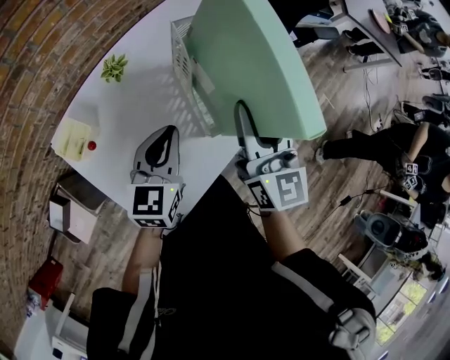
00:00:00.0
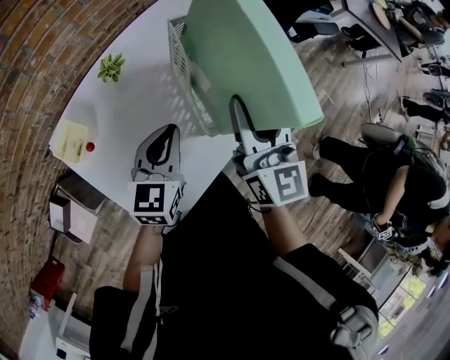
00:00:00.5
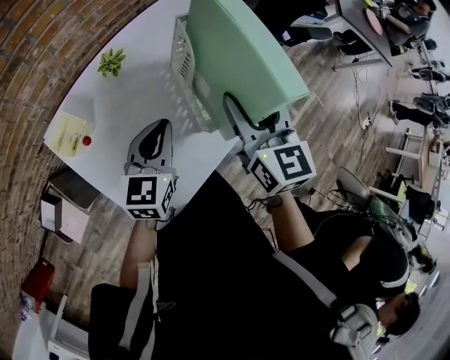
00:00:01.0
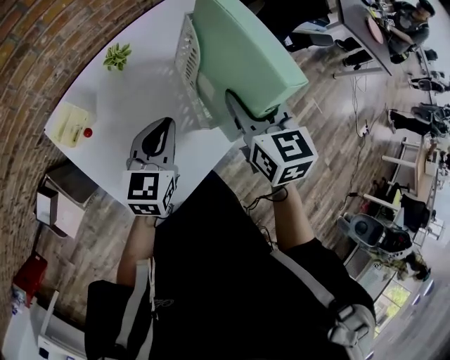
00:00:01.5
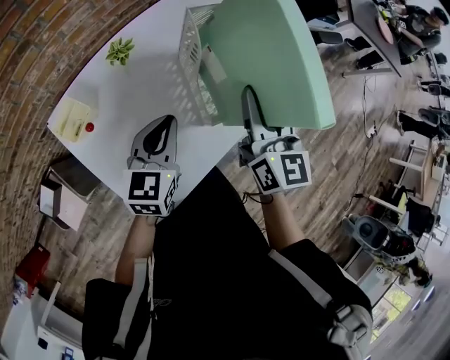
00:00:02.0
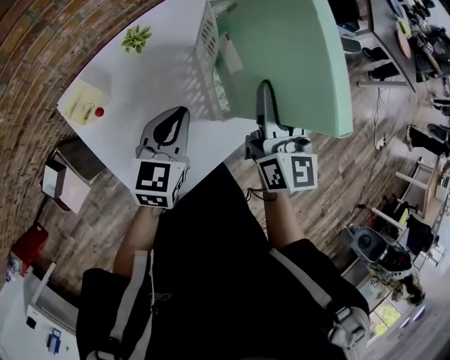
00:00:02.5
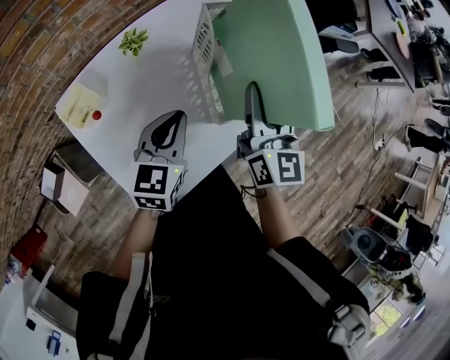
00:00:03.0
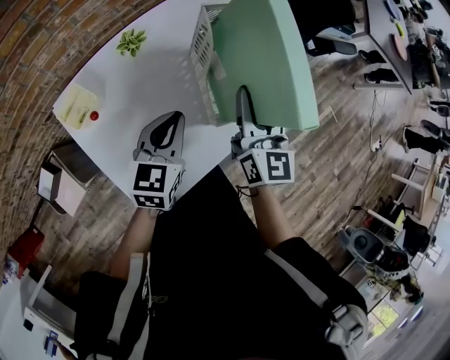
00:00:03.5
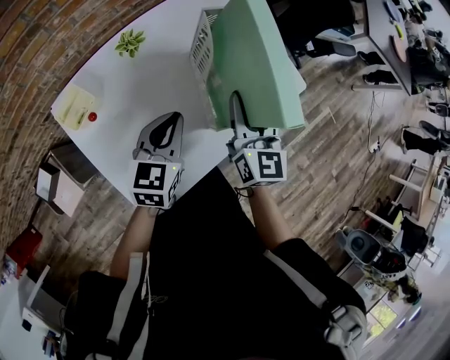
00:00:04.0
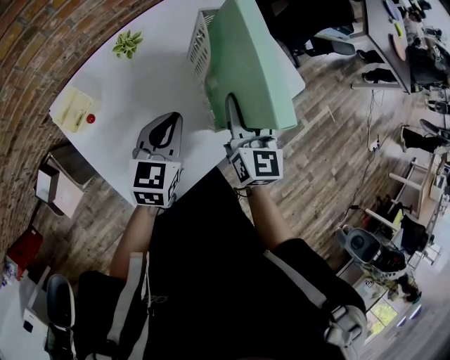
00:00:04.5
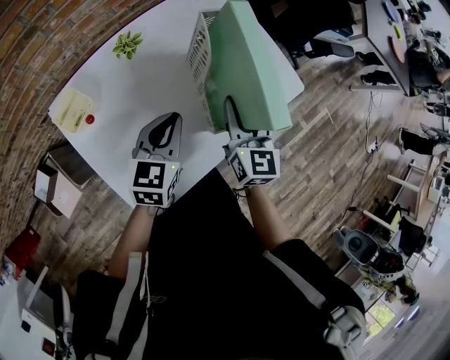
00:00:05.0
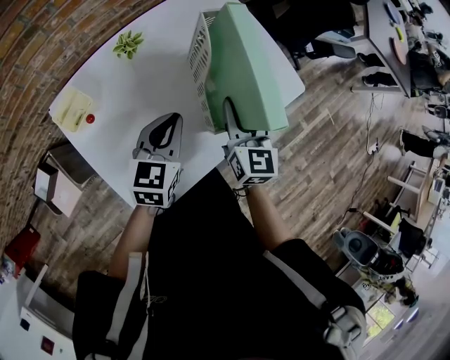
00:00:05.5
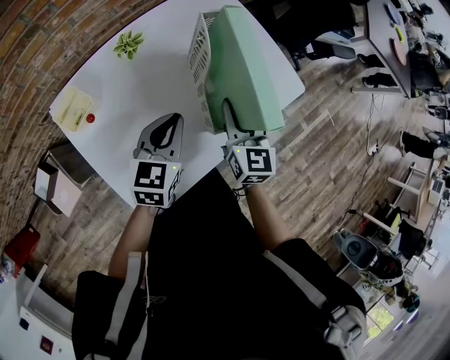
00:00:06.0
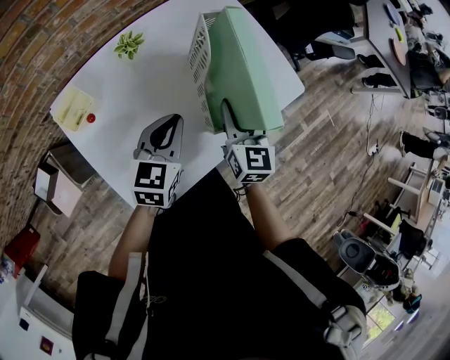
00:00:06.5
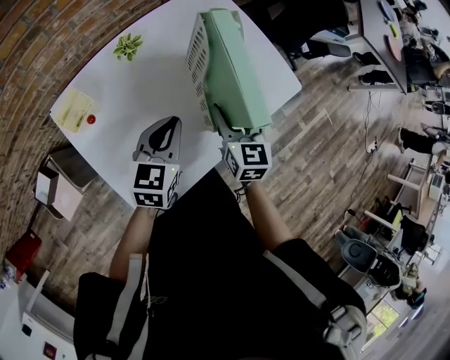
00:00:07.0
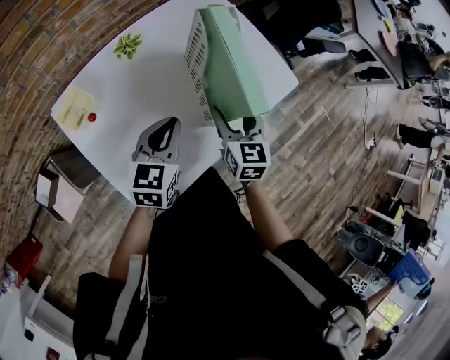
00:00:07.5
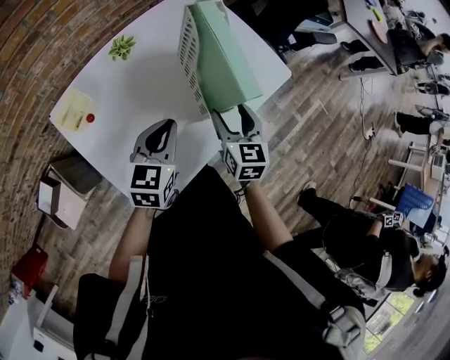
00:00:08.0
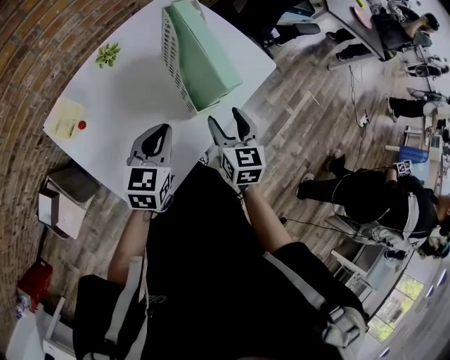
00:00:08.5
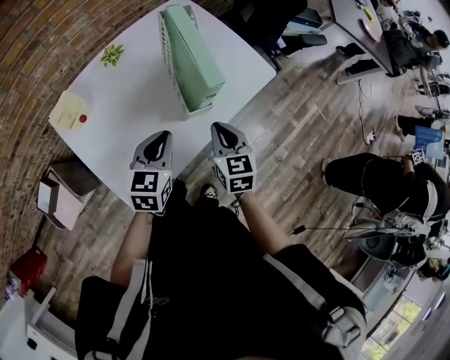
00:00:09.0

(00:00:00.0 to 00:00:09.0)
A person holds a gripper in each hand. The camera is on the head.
00:00:02.0 - 00:00:04.5: The right gripper travels downward by roughly 10 cm.
00:00:04.5 - 00:00:07.0: The right gripper is displaced downward by some 5 cm, and opens its fingers.
00:00:07.0 - 00:00:09.0: Both grippers move backward and to the right, roughly 10 cm. The right gripper closes up.

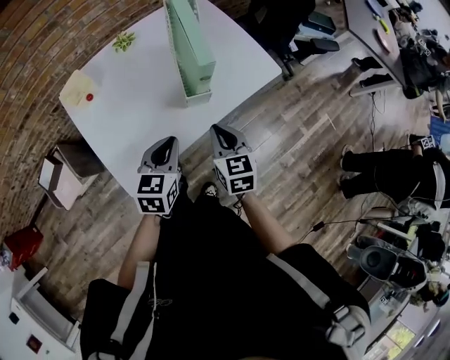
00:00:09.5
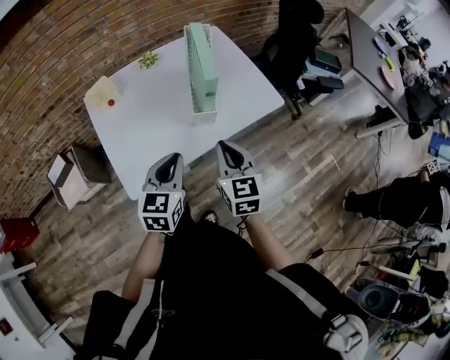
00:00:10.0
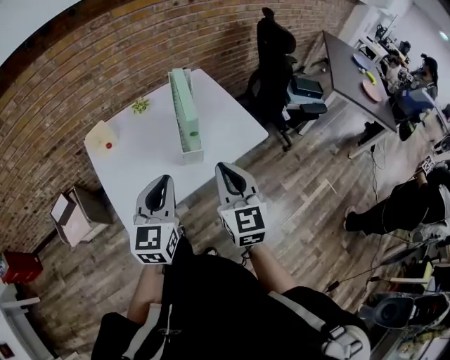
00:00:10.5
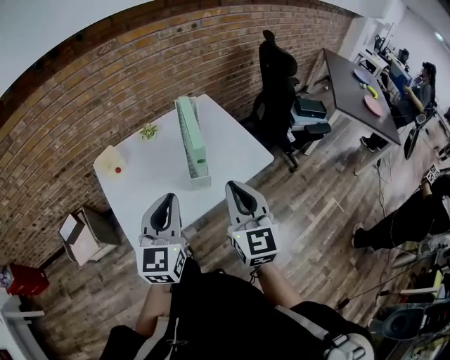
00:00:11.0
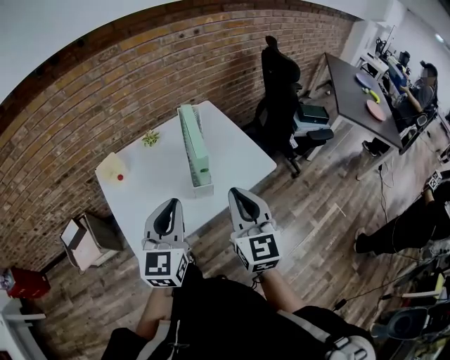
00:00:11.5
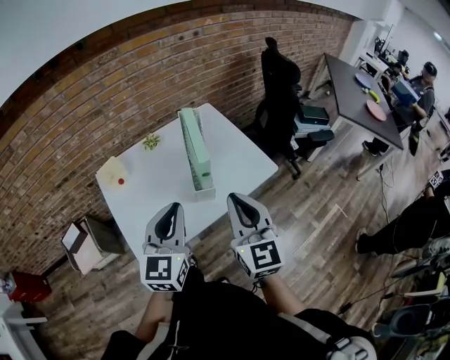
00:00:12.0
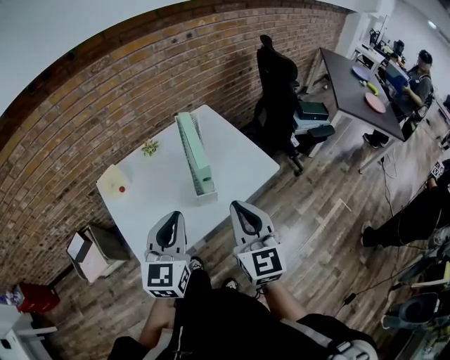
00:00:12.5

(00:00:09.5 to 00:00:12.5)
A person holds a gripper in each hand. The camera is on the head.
00:00:09.5 - 00:00:11.0: Both grippers travel together upward, some 20 cm. The right gripper turns by some 30 degrees; the left gripper rotates roughly 30 degrees.
00:00:11.0 - 00:00:12.5: The grippers make only small movements.

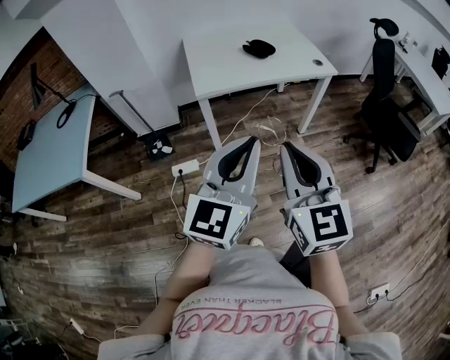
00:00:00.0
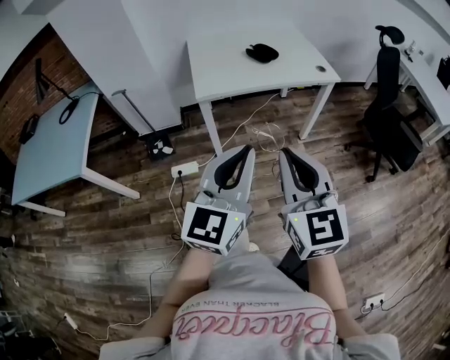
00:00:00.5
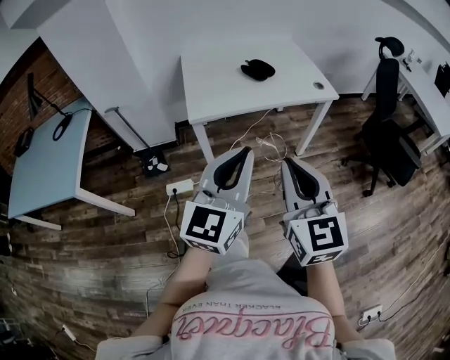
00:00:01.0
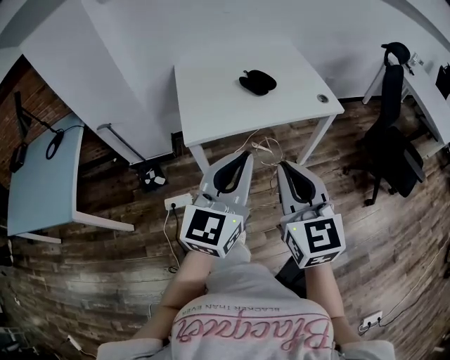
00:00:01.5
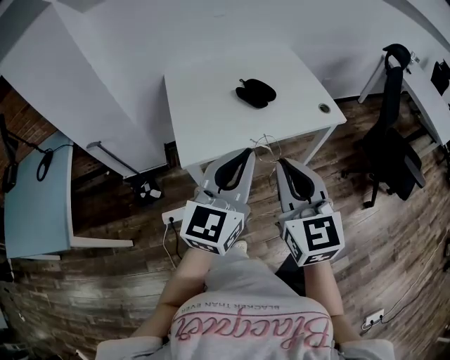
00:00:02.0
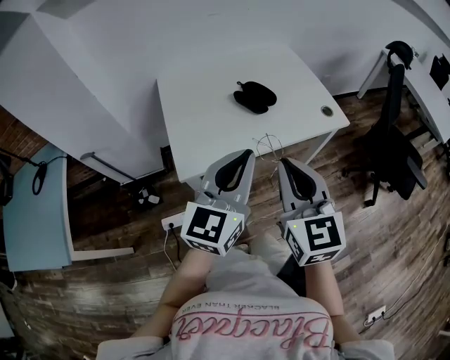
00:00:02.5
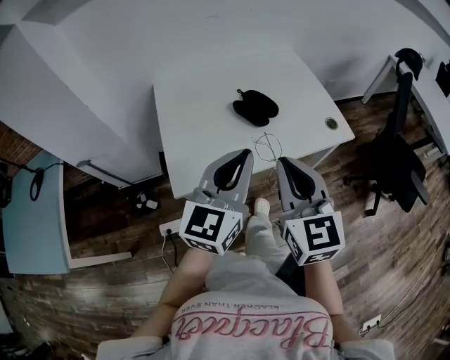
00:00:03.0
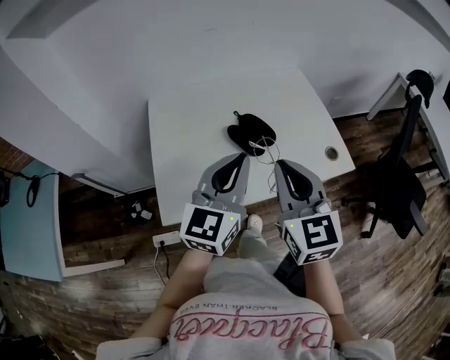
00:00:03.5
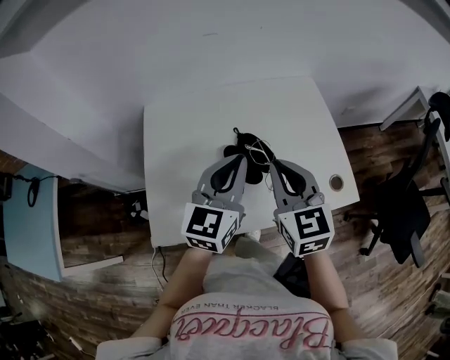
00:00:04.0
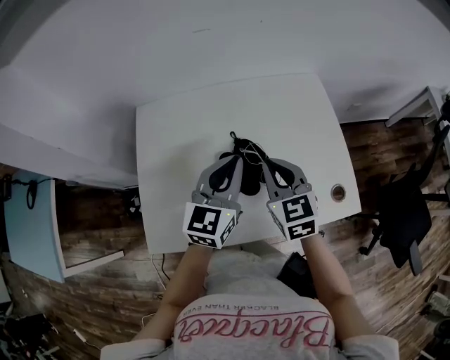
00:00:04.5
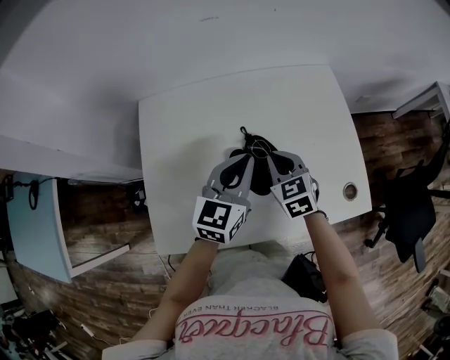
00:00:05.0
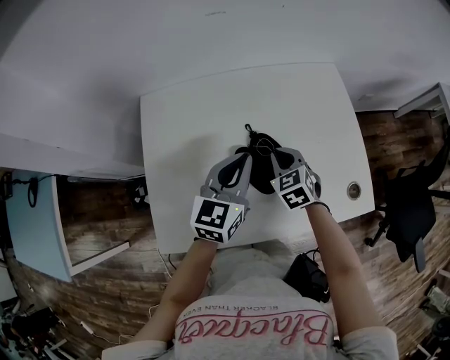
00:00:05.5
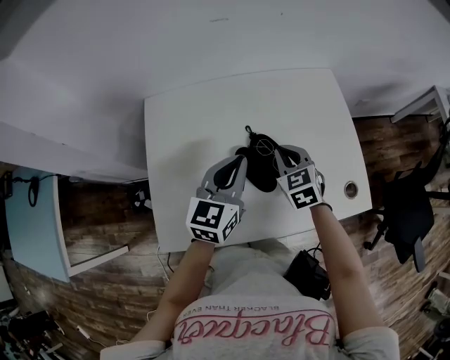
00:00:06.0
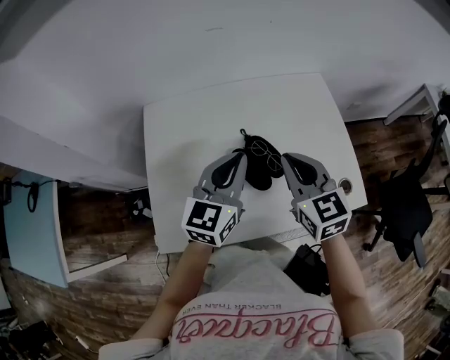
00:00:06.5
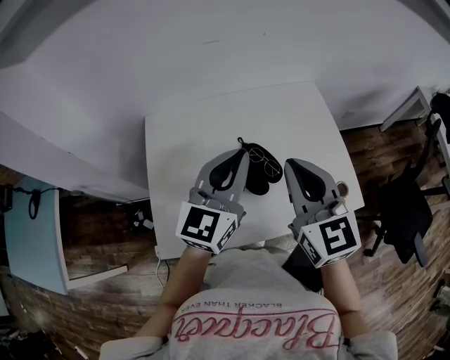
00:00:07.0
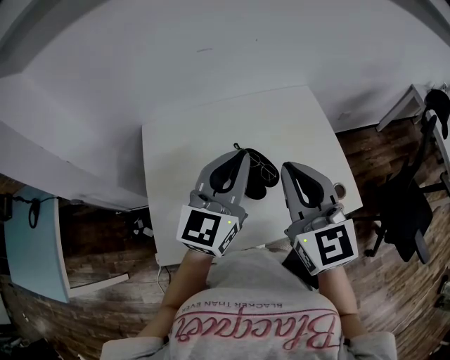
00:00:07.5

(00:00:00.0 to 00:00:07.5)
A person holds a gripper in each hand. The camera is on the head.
00:00:00.0 - 00:00:02.0: Both grippers travel together forward, about 30 cm.
00:00:02.0 - 00:00:04.0: The two grippers go about 35 cm forward.
00:00:04.0 - 00:00:05.5: The left gripper is displaced downward and forward by some 15 cm. Meanwhile the right gripper moves downward and forward, about 25 cm, and changes its angle by about 30 degrees.
00:00:05.5 - 00:00:07.5: The right gripper travels upward and backward by roughly 30 cm, and points its fingers about 40 degrees further upward, while the left gripper is displaced upward by roughly 15 cm, and turns by about 20 degrees.

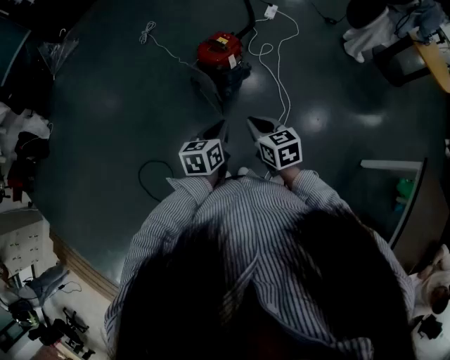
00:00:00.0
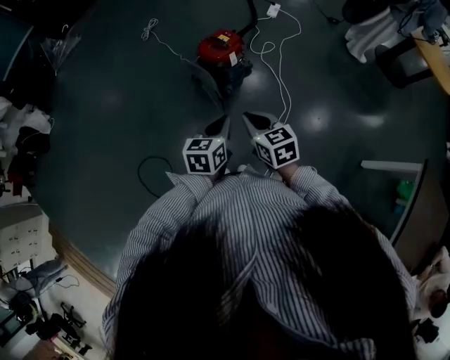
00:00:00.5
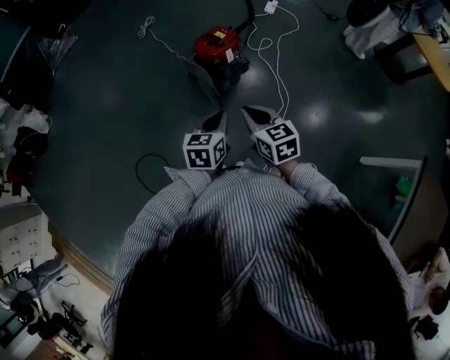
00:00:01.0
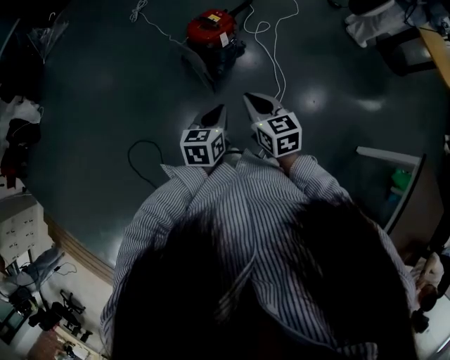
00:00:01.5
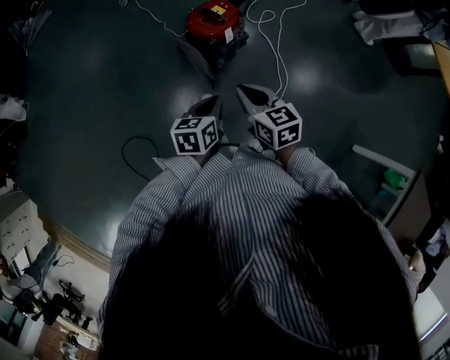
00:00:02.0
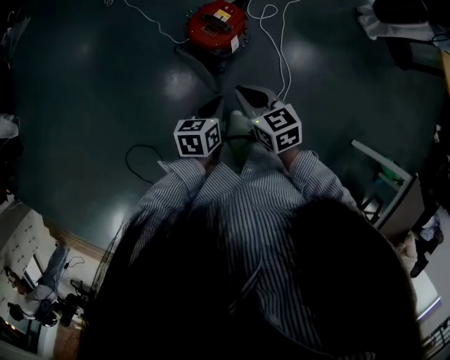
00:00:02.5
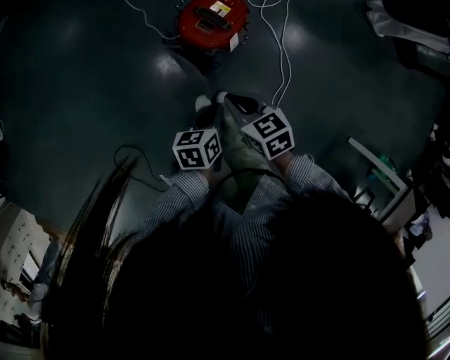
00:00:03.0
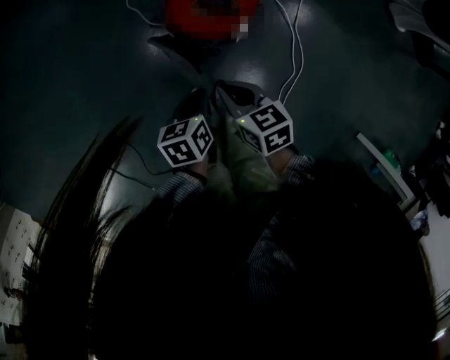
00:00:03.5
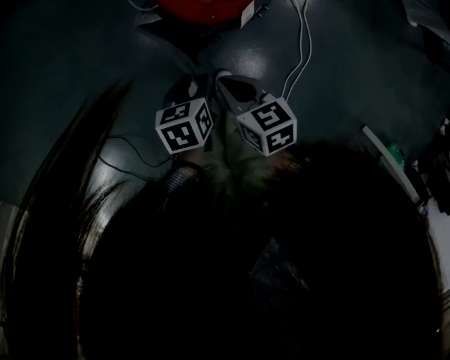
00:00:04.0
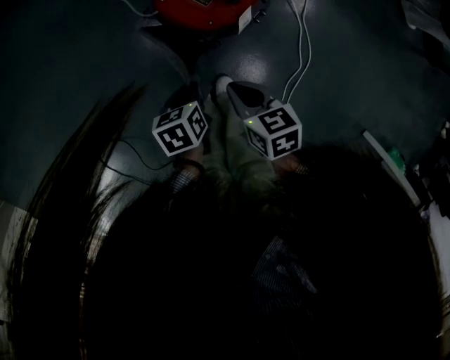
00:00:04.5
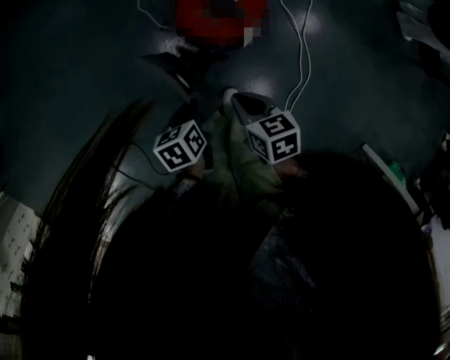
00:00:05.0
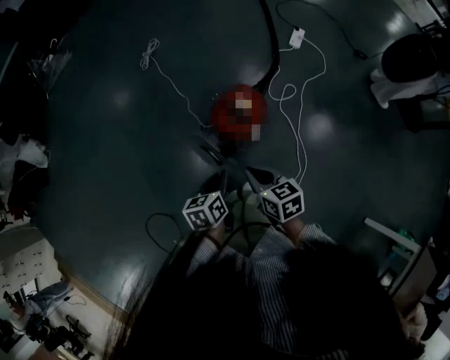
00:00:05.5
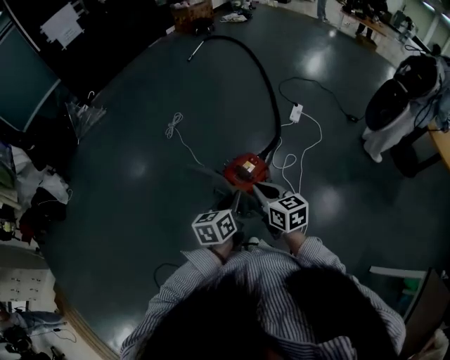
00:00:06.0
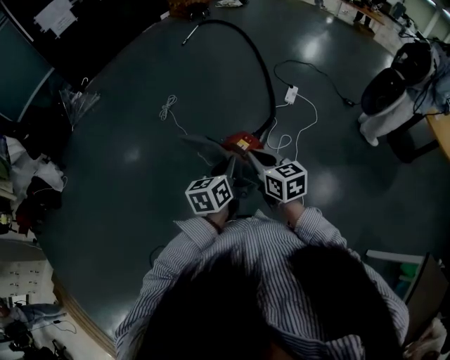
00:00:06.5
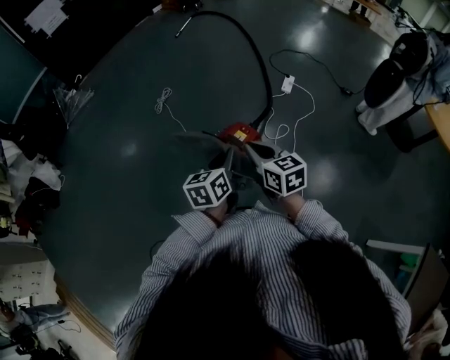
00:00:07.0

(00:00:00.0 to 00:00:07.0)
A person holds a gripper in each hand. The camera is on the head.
00:00:00.0 - 00:00:02.0: The left gripper moves forward and downward, roughly 15 cm. Meanwhile the right gripper shifts some 15 cm forward.
00:00:02.0 - 00:00:03.5: Both grippers move downward and forward, roughly 35 cm. The right gripper changes its angle by approximately 20 degrees. Meanwhile the left gripper turns by about 20 degrees.
00:00:03.5 - 00:00:05.0: The left gripper reaches about 10 cm downward, then returns, and opens and closes again.
00:00:05.0 - 00:00:07.0: Both grippers move upward, some 40 cm. The left gripper tilts its fingers about 40 degrees upward; the right gripper rotates roughly 40 degrees.
